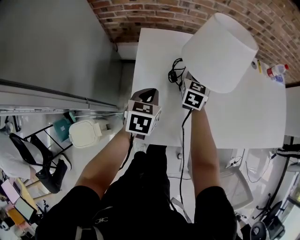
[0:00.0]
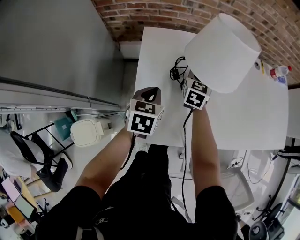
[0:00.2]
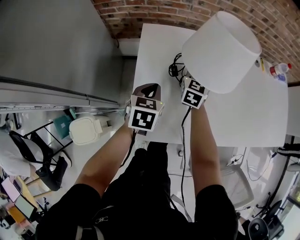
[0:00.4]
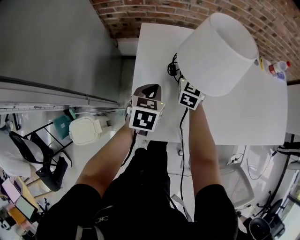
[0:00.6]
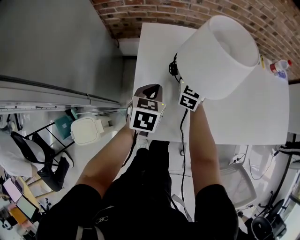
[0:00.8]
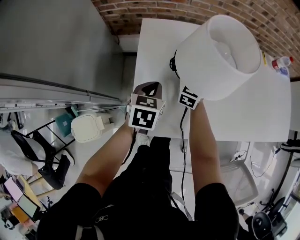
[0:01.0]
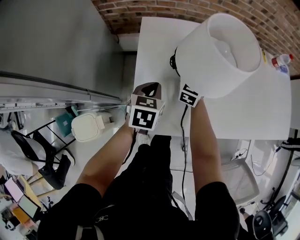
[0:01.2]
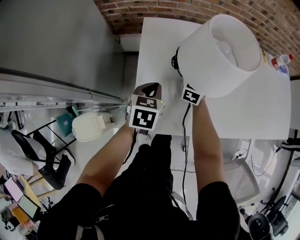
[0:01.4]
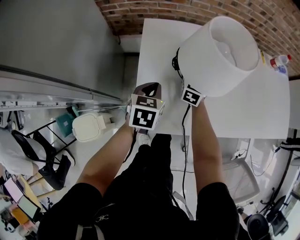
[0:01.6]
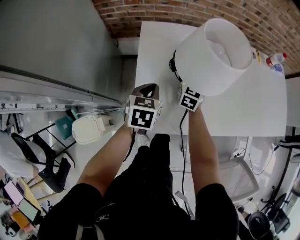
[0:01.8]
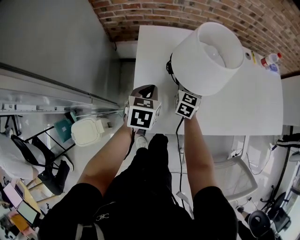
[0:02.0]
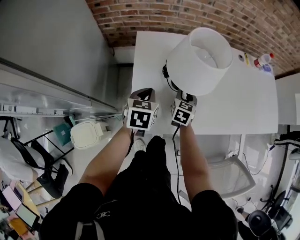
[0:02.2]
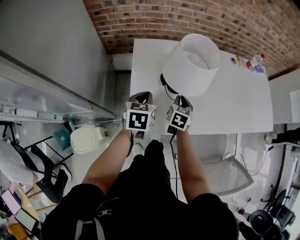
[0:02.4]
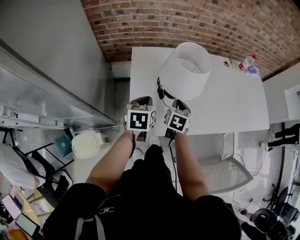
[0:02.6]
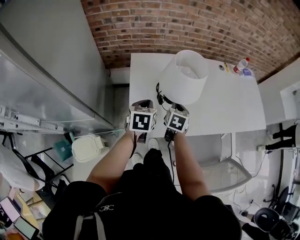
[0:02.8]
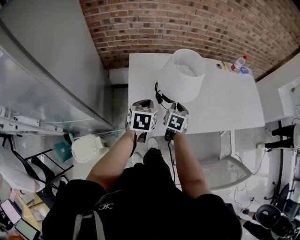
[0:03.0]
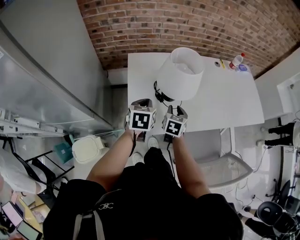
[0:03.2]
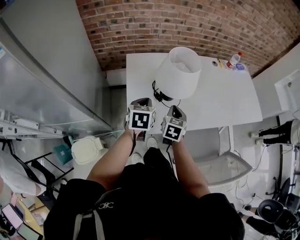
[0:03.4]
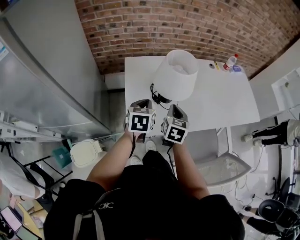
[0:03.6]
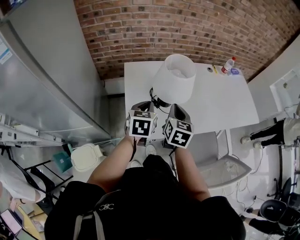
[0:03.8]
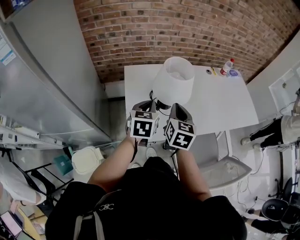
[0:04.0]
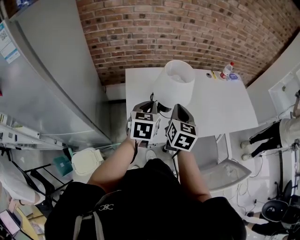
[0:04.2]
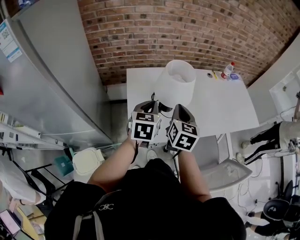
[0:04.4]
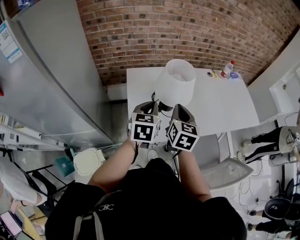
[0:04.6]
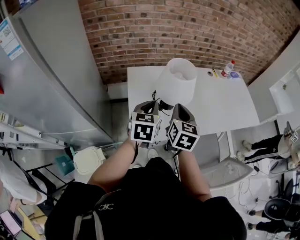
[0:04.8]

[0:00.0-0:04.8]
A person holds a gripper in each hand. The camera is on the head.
0:00.0 to 0:01.6: The right gripper opens its fingers.
0:01.6 to 0:03.2: The right gripper is displaced backward by some 20 cm, turns by about 20 degrees, and closes up. The left gripper goes some 10 cm upward and backward.
0:03.2 to 0:04.8: The right gripper moves upward, about 20 cm, and closes its fingers. The left gripper shifts about 10 cm upward.

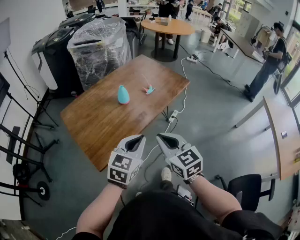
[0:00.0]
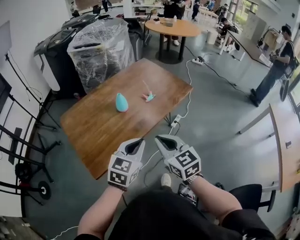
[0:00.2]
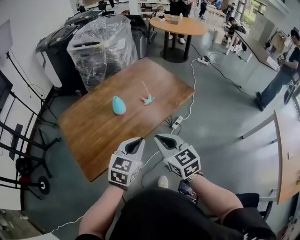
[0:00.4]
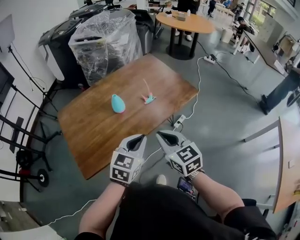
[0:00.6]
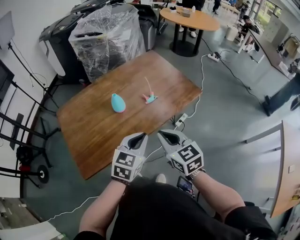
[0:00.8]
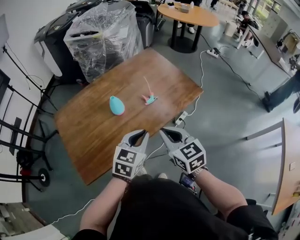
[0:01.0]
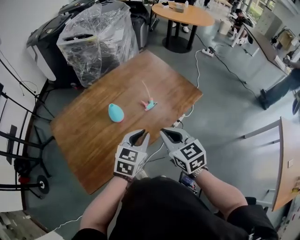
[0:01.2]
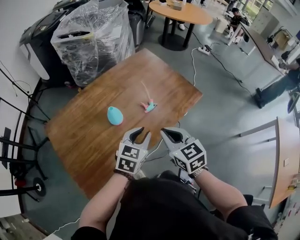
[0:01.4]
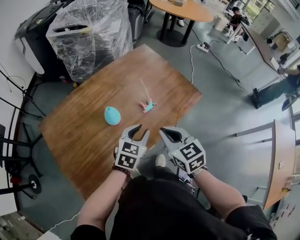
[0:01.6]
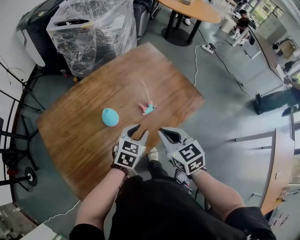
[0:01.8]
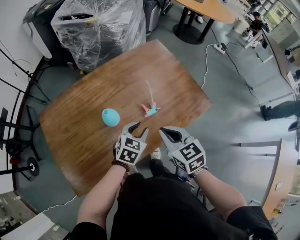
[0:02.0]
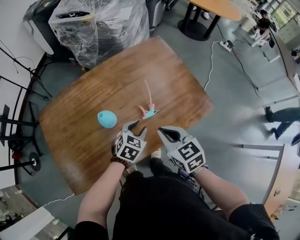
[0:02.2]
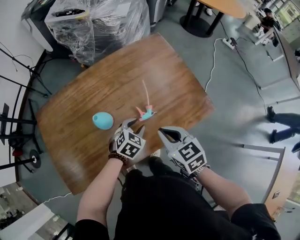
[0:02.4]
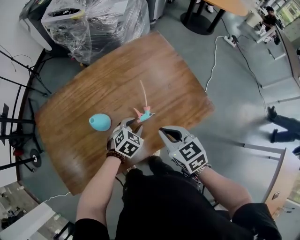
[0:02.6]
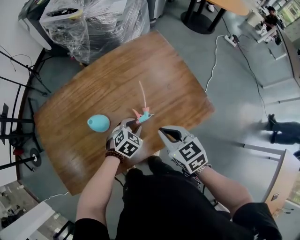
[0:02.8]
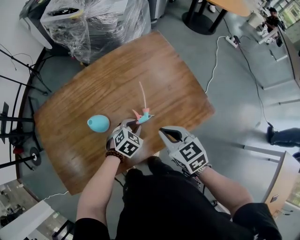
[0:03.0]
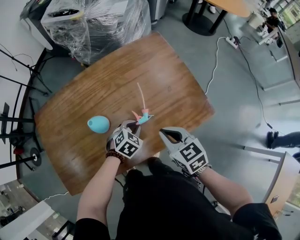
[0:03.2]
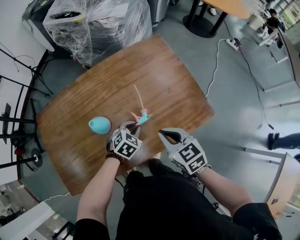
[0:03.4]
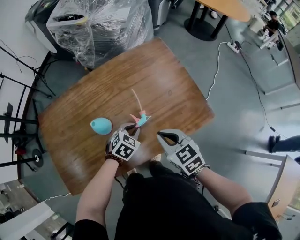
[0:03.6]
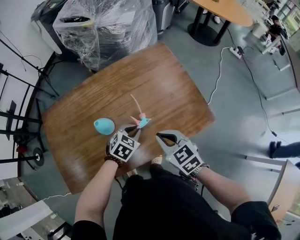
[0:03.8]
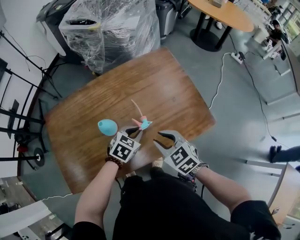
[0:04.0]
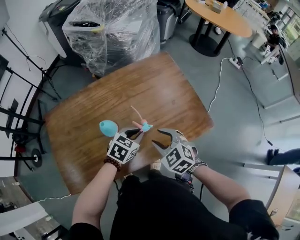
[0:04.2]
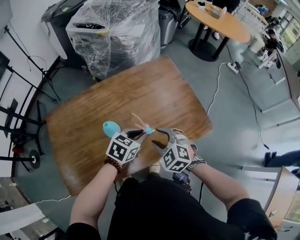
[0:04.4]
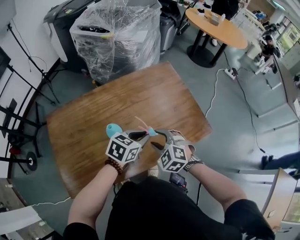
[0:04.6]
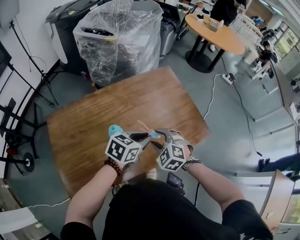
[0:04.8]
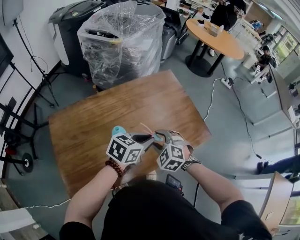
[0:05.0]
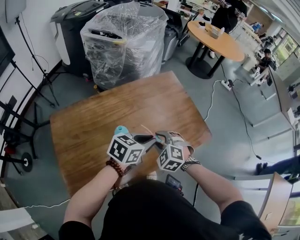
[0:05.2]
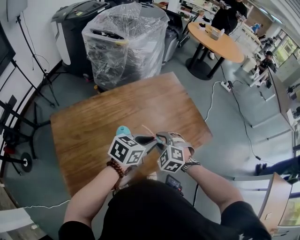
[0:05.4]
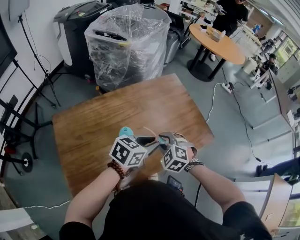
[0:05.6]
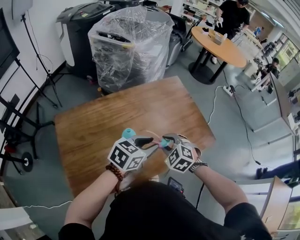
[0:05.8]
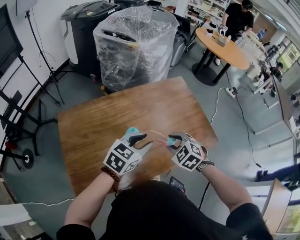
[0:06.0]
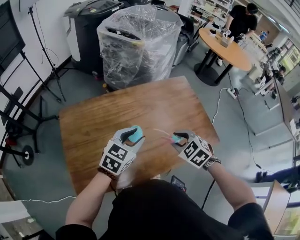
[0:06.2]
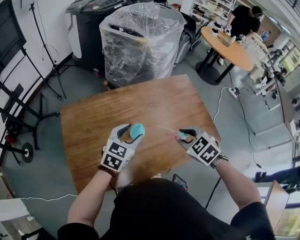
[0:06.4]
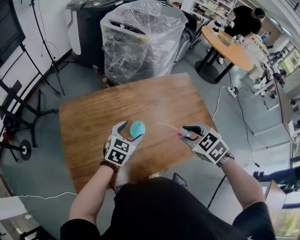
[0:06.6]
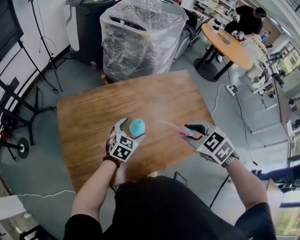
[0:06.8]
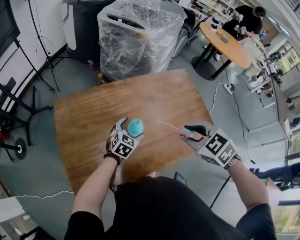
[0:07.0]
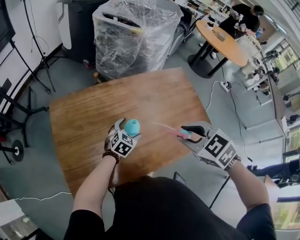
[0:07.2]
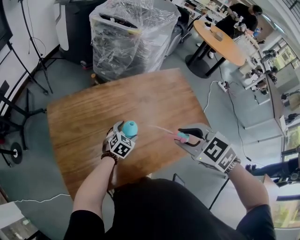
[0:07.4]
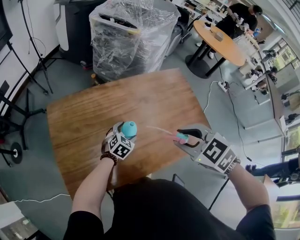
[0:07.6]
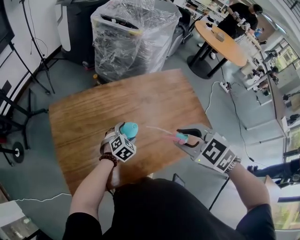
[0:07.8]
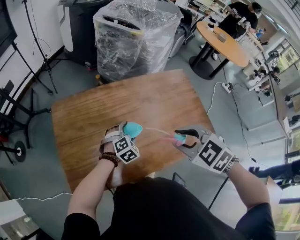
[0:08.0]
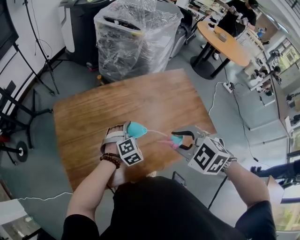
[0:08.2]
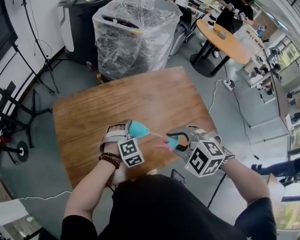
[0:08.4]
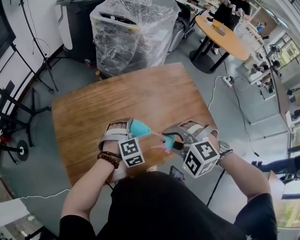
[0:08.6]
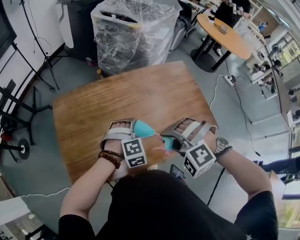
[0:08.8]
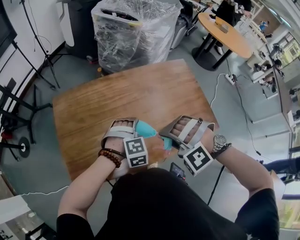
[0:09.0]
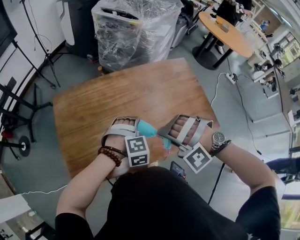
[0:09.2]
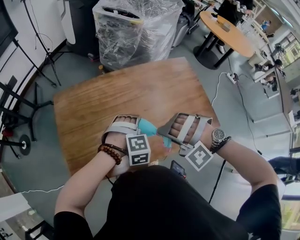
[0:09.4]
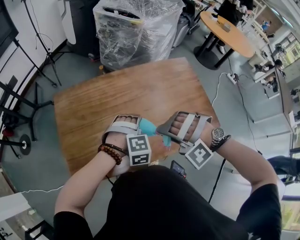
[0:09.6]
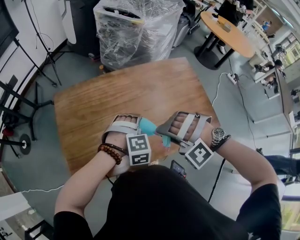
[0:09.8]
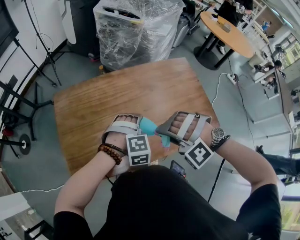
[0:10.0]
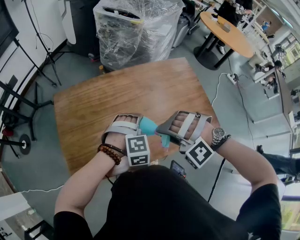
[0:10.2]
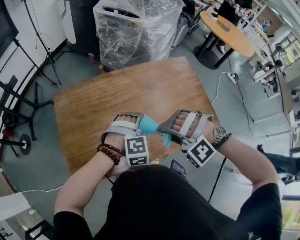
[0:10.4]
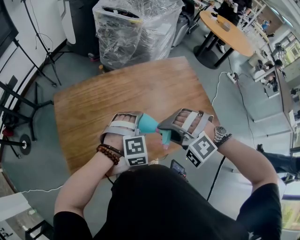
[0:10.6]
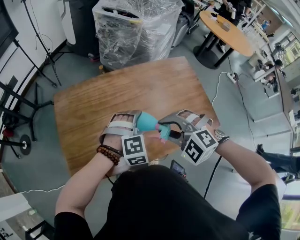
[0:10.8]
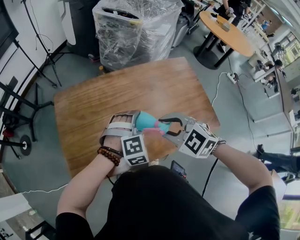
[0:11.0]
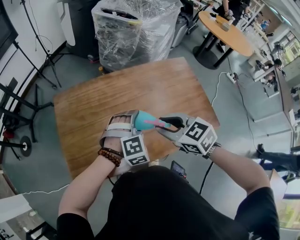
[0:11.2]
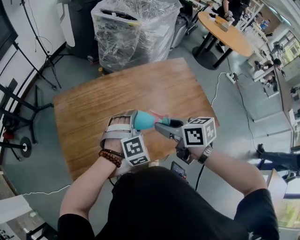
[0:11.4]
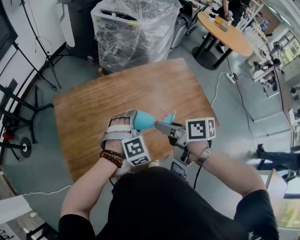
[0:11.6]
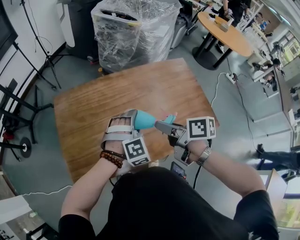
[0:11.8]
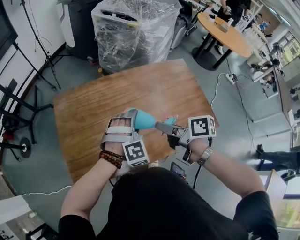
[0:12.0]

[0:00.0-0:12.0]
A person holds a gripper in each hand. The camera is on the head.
0:00.0 to 0:01.6: The right gripper travels forward by approximately 25 cm. Meanwhile the left gripper is displaced forward and downward by roughly 30 cm.
0:01.6 to 0:03.0: The left gripper heads downward and forward, covering about 20 cm, and rotates some 30 degrees. Meanwhile the right gripper travels forward, downward and to the right by about 15 cm, and rotates some 20 degrees.
0:03.0 to 0:04.4: The left gripper goes roughly 15 cm upward, and rotates approximately 30 degrees. The right gripper moves to the left, some 5 cm, rolls counterclockwise, seen from behind, by about 40 degrees, and opens up.
0:04.4 to 0:06.0: The right gripper shifts by about 5 cm. Meanwhile the left gripper is displaced upward and to the left by some 15 cm.
0:06.0 to 0:07.6: The left gripper shifts about 20 cm downward, turns by approximately 20 degrees, and opens up; the right gripper travels upward by approximately 15 cm.
0:07.6 to 0:09.0: The left gripper travels upward and backward by roughly 10 cm, and twists about 40 degrees clockwise, seen from behind. The right gripper is displaced downward by roughly 5 cm, and rolls counterclockwise, seen from behind, by approximately 70 degrees.
0:09.0 to 0:10.4: There are only small adjustments of the grippers.
0:10.4 to 0:12.0: The right gripper goes roughly 5 cm forward, and rotates around the line of its fingers by about 150 degrees, clockwise from behind.

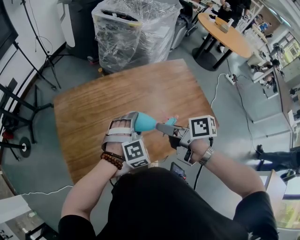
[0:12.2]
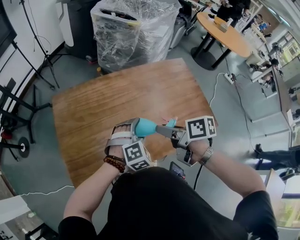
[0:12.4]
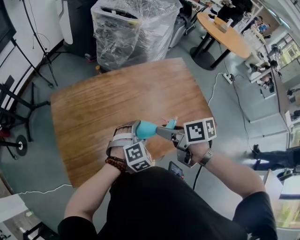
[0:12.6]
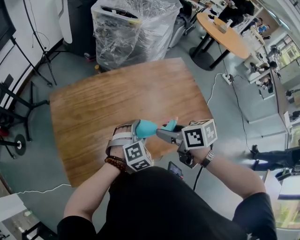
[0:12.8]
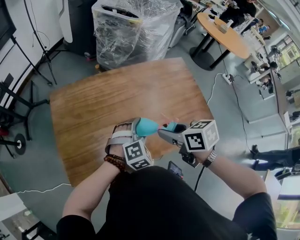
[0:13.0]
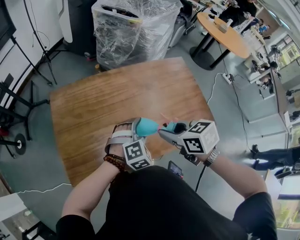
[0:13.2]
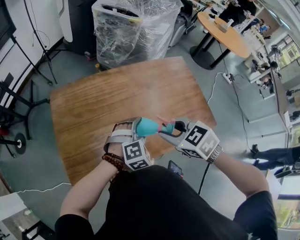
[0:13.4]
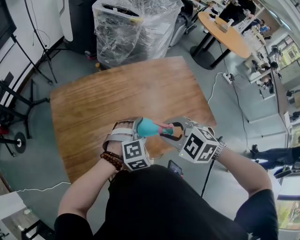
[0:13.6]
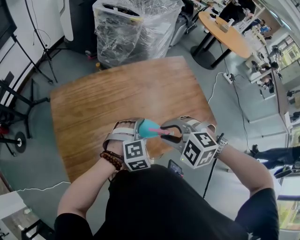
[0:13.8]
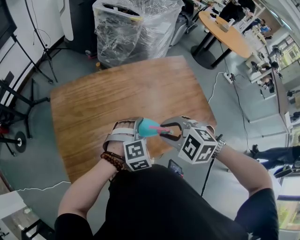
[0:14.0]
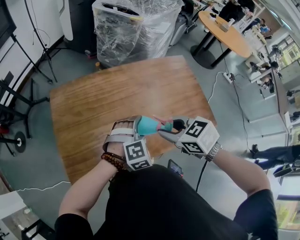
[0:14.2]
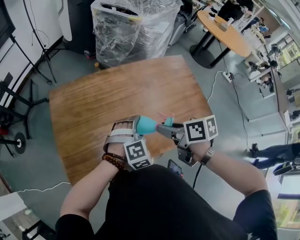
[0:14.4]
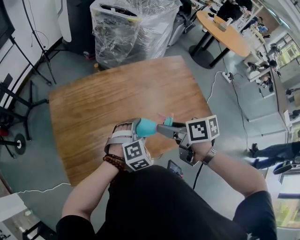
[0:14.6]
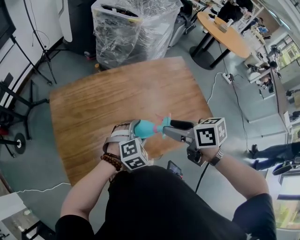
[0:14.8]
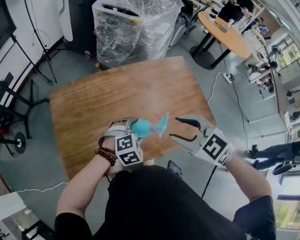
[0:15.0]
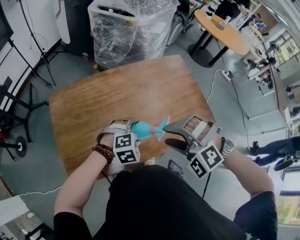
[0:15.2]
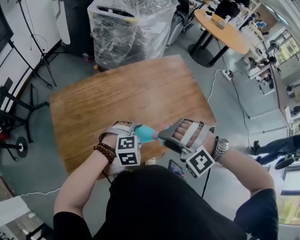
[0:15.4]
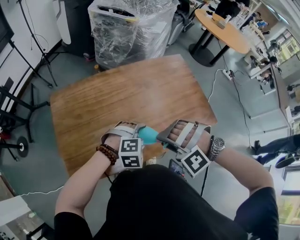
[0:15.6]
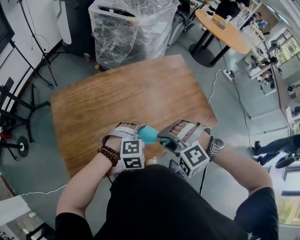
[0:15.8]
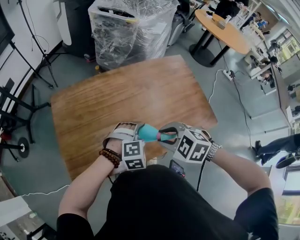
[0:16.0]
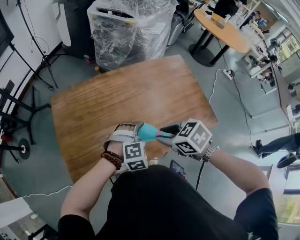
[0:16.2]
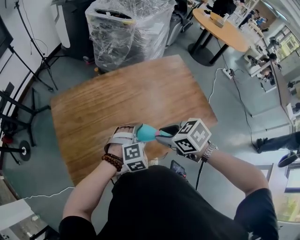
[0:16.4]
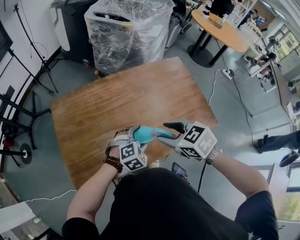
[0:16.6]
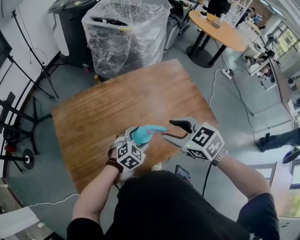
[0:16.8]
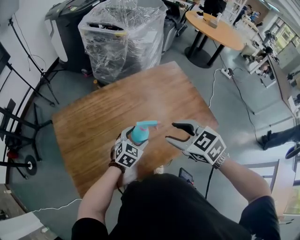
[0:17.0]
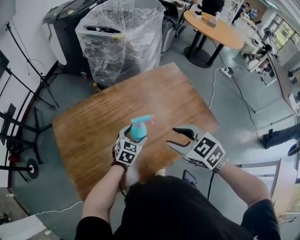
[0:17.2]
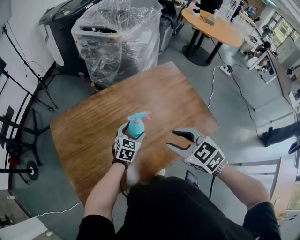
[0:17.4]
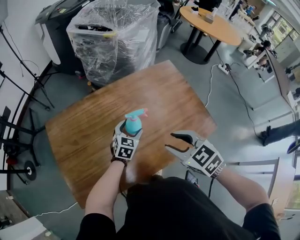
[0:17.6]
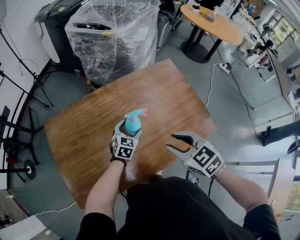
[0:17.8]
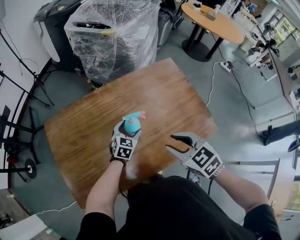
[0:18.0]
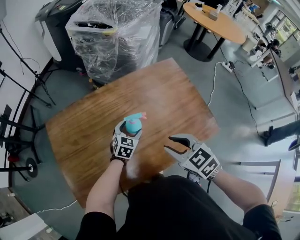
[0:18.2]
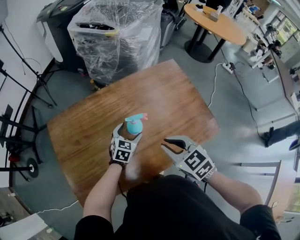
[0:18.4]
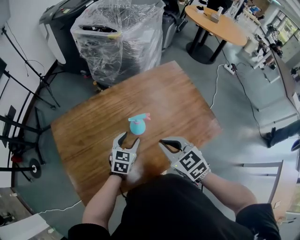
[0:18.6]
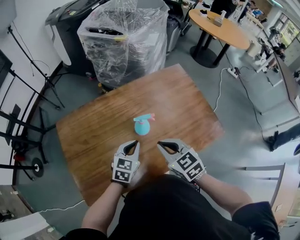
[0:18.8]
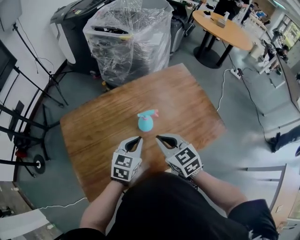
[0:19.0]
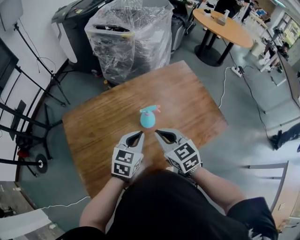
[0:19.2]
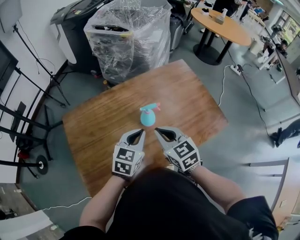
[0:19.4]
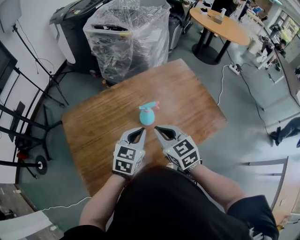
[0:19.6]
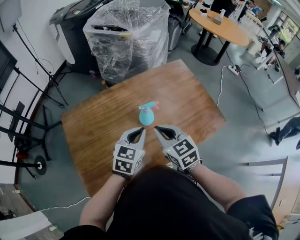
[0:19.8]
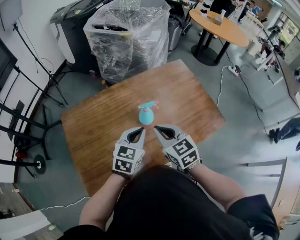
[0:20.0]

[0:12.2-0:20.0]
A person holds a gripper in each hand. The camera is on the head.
0:12.2 to 0:13.8: The grippers both shift backward by approximately 5 cm. The right gripper twists some 100 degrees counterclockwise, seen from behind.
0:13.8 to 0:15.4: The right gripper rotates about 40 degrees, and opens up.
0:15.4 to 0:16.8: The right gripper moves some 10 cm, and twists roughly 80 degrees clockwise, seen from behind. Meanwhile the left gripper changes its angle by some 30 degrees.
0:16.8 to 0:18.4: The right gripper moves about 5 cm, and closes up. Meanwhile the left gripper travels forward by about 10 cm, and rotates about 30 degrees.
0:18.4 to 0:20.0: The right gripper is displaced to the left by some 5 cm; the left gripper is displaced upward and backward by some 20 cm, and closes its fingers.
